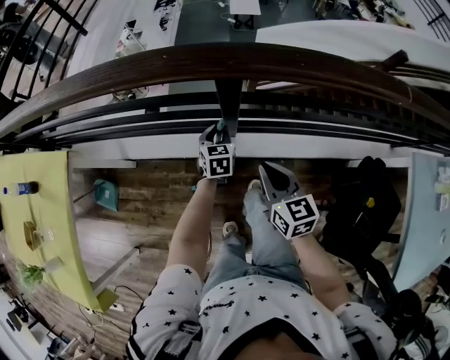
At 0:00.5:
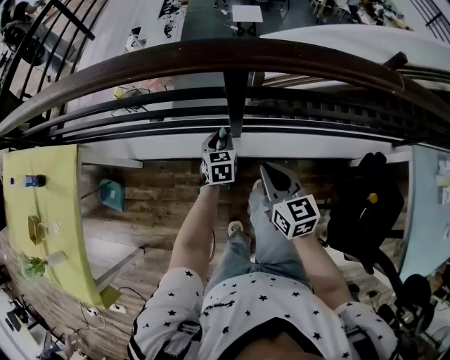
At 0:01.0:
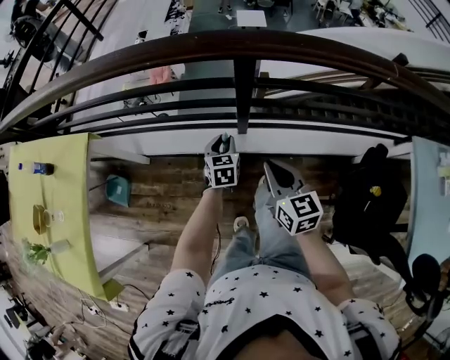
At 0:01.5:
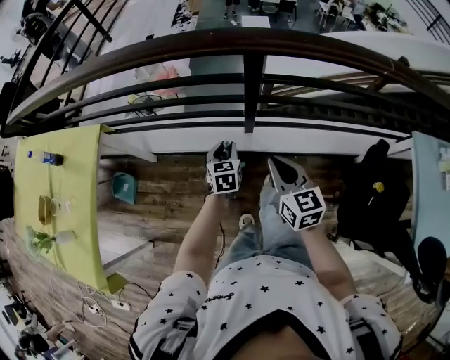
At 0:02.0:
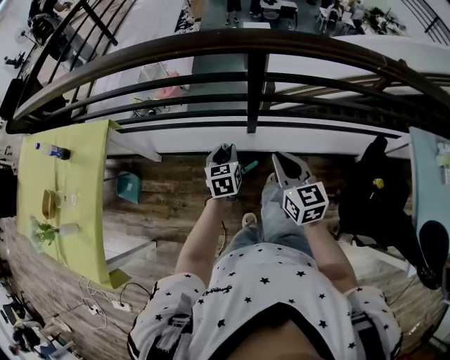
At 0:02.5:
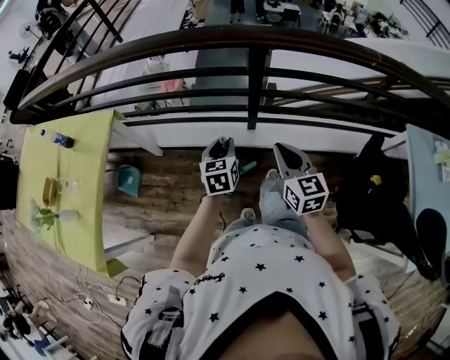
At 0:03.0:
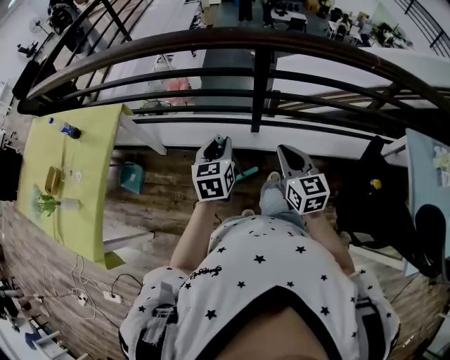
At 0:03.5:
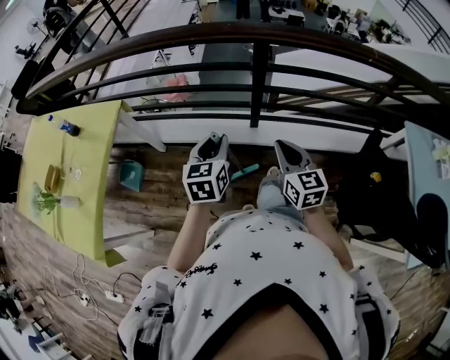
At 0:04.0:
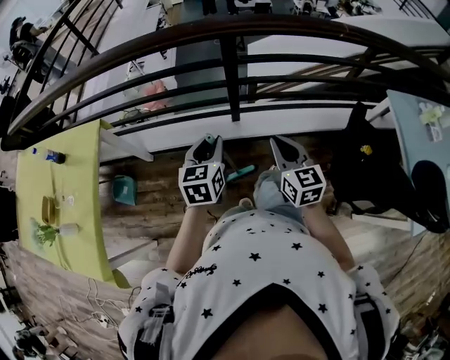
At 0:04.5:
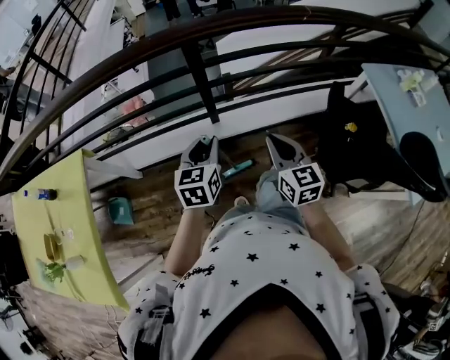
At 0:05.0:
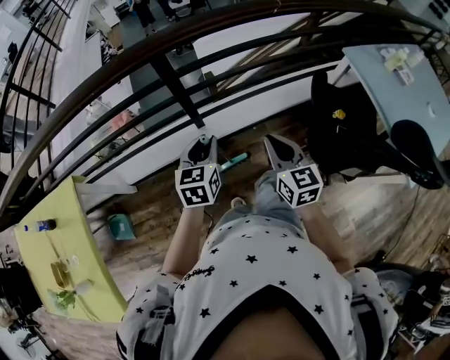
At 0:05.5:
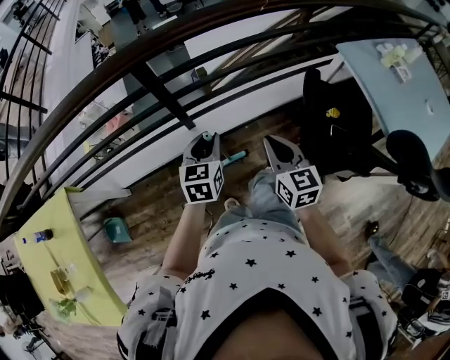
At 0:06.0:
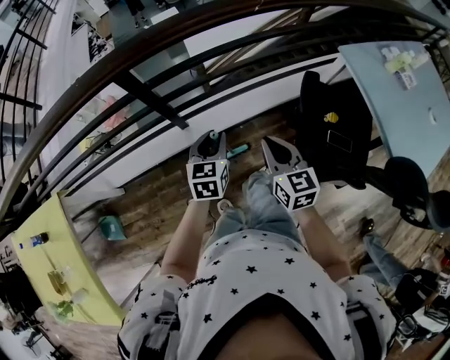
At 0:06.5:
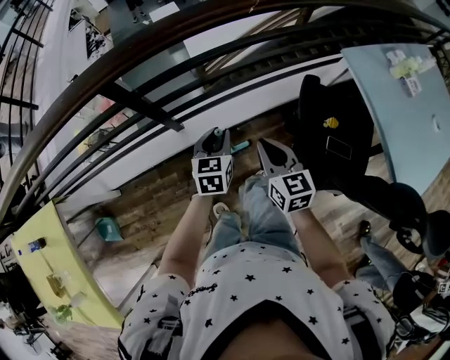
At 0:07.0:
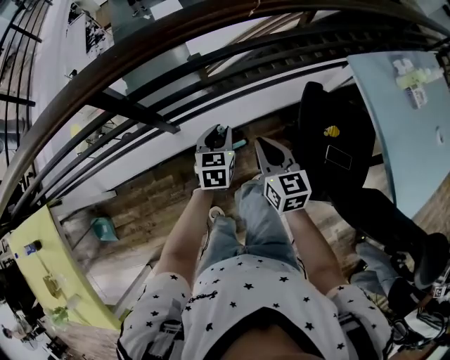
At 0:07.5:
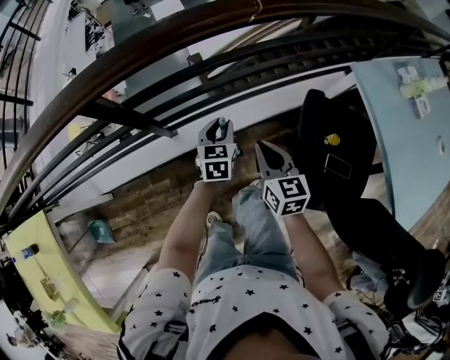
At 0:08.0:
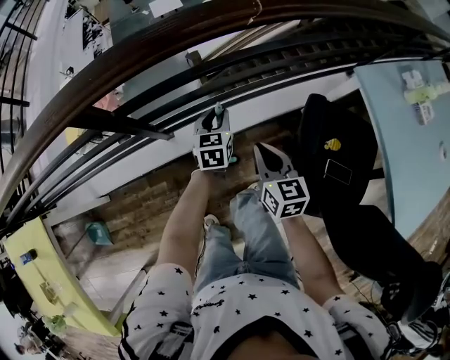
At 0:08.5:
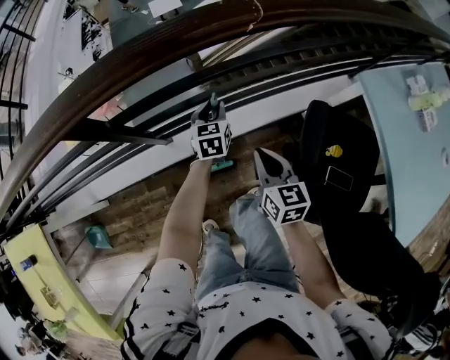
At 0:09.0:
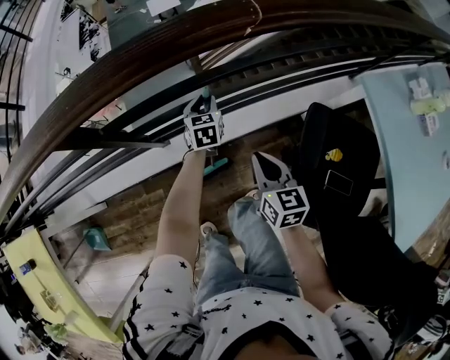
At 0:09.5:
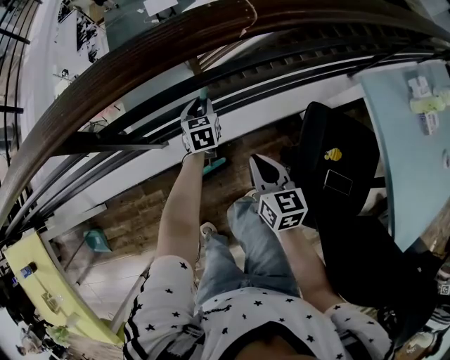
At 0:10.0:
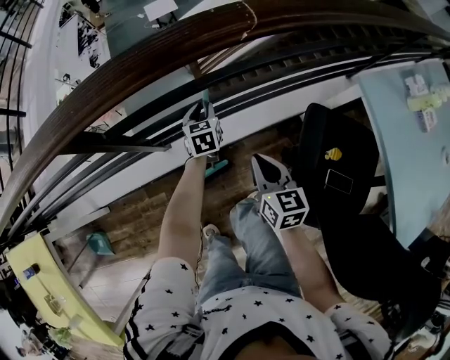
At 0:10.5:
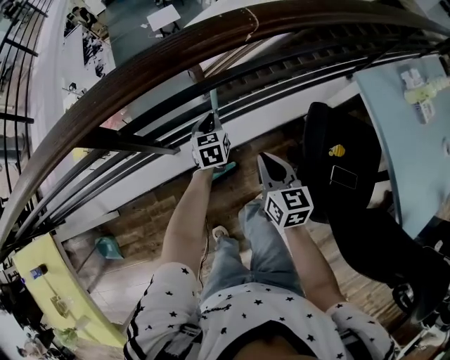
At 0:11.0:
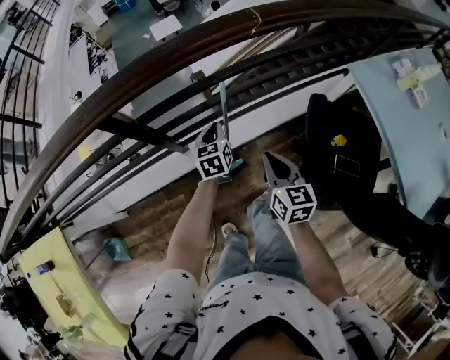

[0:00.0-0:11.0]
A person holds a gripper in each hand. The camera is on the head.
0:00.0 to 0:02.0: Both grippers move backward, upward and to the left, about 25 cm.
0:02.0 to 0:03.5: The right gripper goes approximately 5 cm backward. The left gripper is displaced upward and backward by approximately 20 cm.
0:03.5 to 0:05.5: The left gripper changes place by some 25 cm, and swivels some 30 degrees, while the right gripper ends up about 20 cm from where it was, and rotates roughly 30 degrees.
0:05.5 to 0:07.5: The right gripper goes some 25 cm forward, downward and to the right. Meanwhile the left gripper heads forward, to the right and downward, covering about 30 cm.
0:07.5 to 0:09.0: The left gripper is displaced forward and downward by about 20 cm, while the right gripper moves forward and downward, approximately 10 cm.
0:09.0 to 0:11.0: The left gripper moves backward and upward, some 15 cm, and closes its fingers; the right gripper heads backward and upward, covering approximately 10 cm.

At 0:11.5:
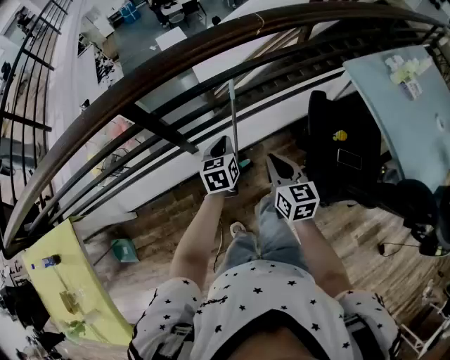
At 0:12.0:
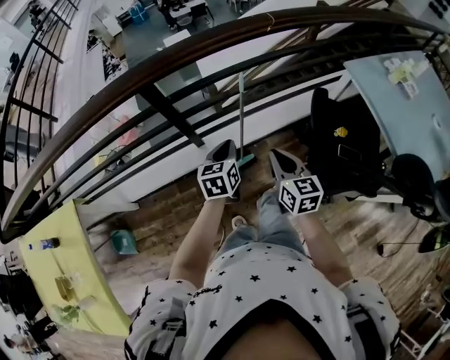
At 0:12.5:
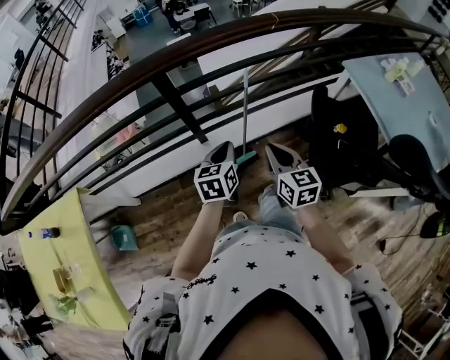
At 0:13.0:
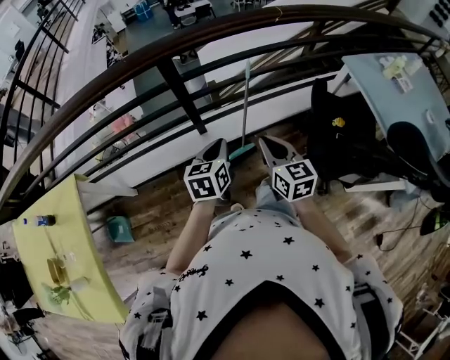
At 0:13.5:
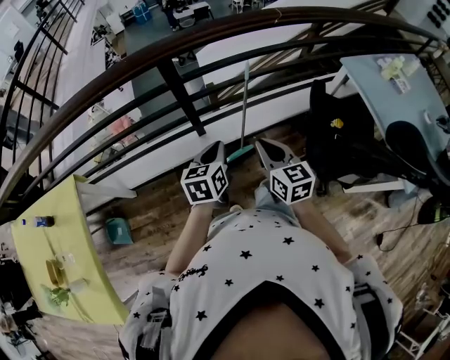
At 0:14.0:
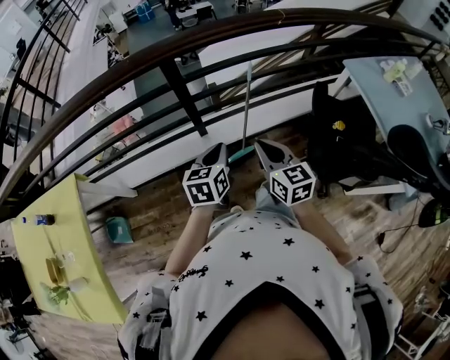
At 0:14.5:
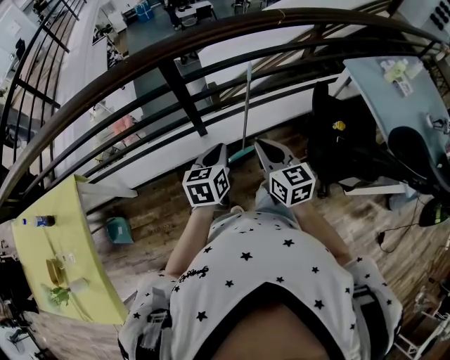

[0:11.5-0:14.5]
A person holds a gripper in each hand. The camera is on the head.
0:11.5 to 0:13.0: The two grippers go approximately 20 cm backward, to the left and upward.
0:13.0 to 0:14.5: The grippers make only small movements.

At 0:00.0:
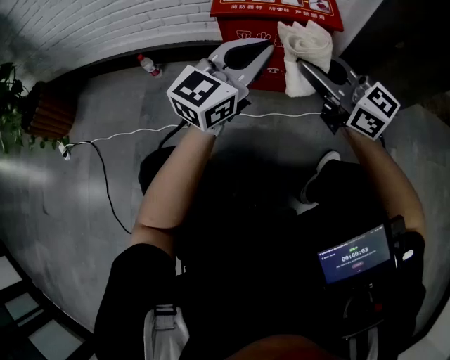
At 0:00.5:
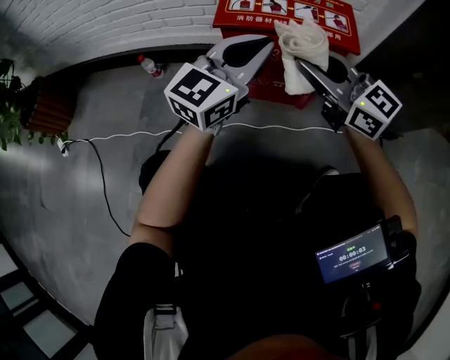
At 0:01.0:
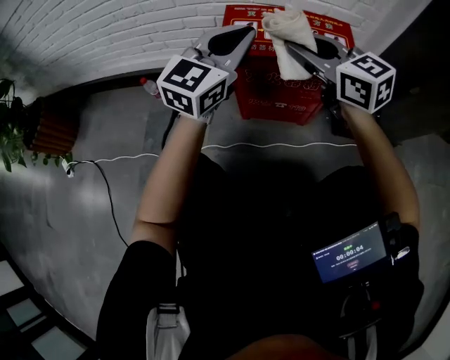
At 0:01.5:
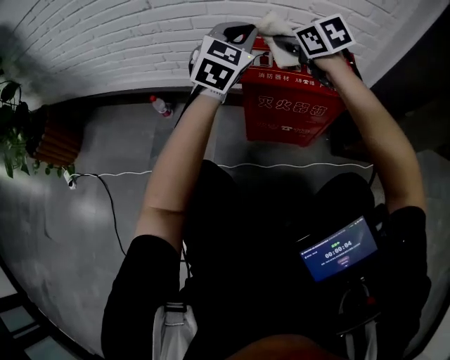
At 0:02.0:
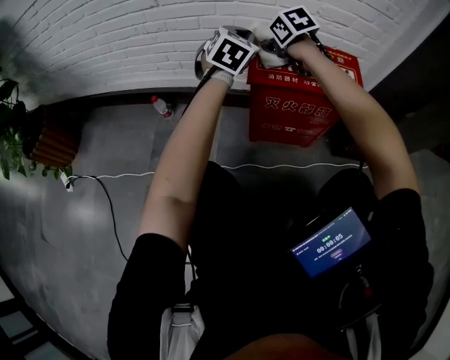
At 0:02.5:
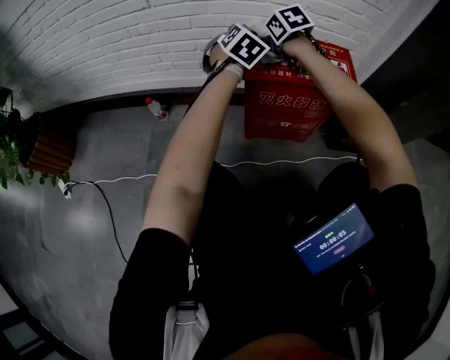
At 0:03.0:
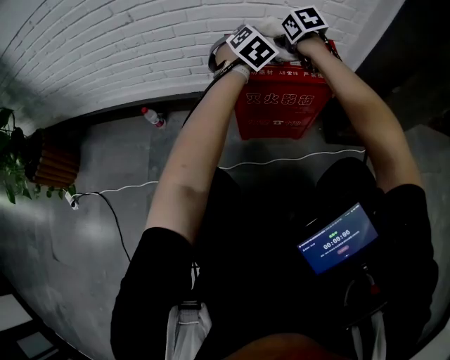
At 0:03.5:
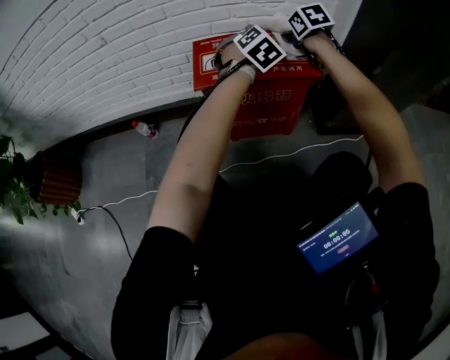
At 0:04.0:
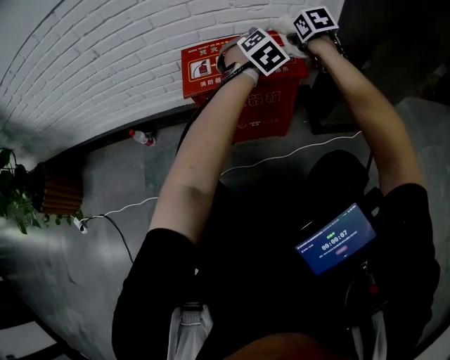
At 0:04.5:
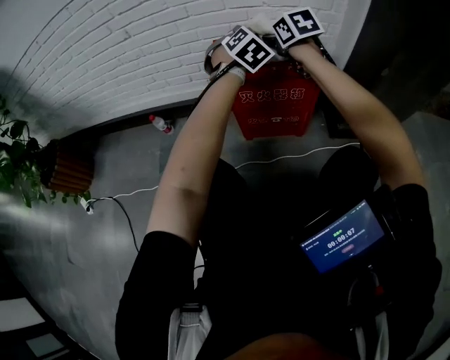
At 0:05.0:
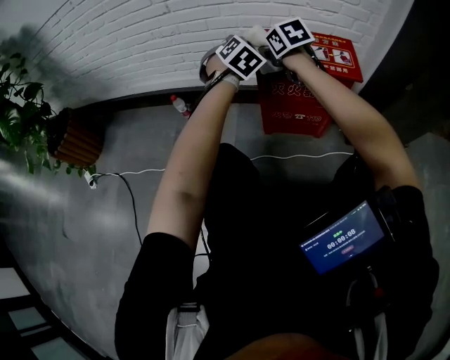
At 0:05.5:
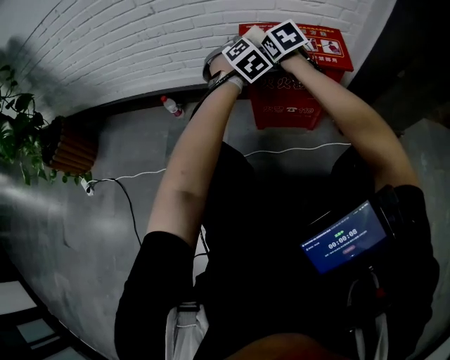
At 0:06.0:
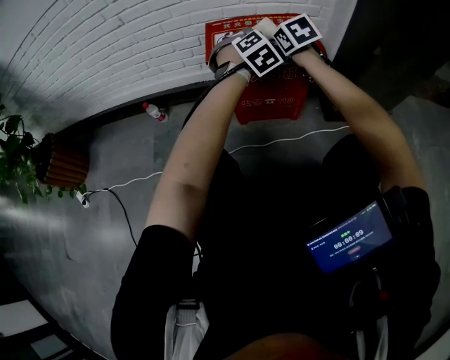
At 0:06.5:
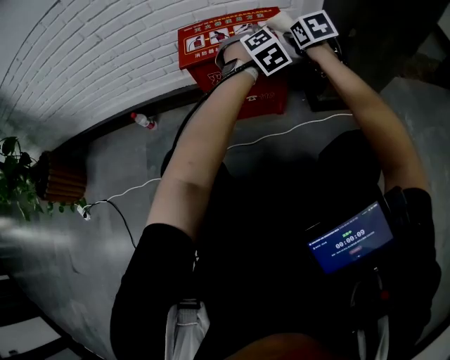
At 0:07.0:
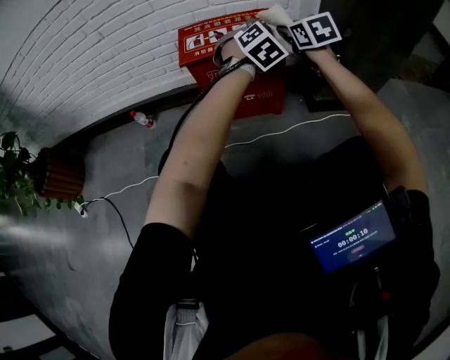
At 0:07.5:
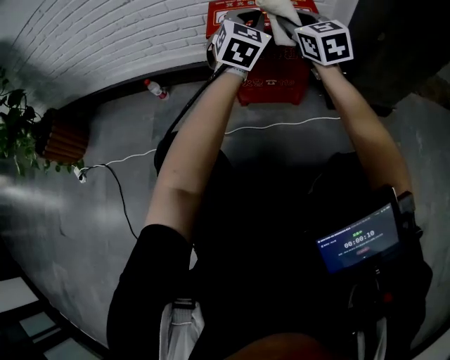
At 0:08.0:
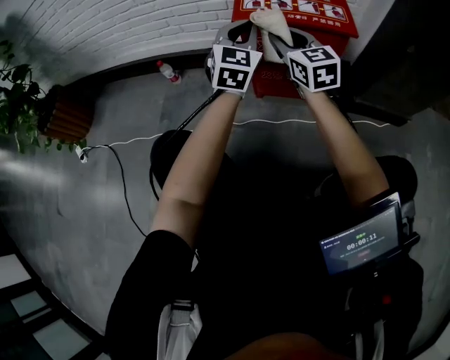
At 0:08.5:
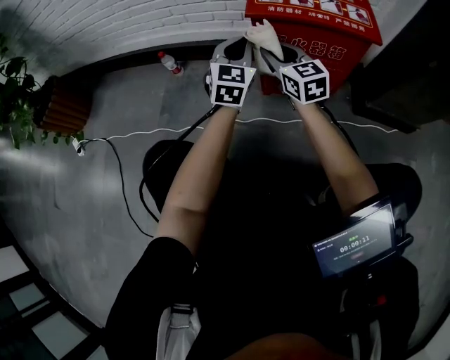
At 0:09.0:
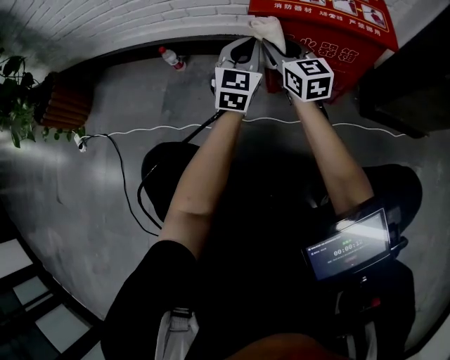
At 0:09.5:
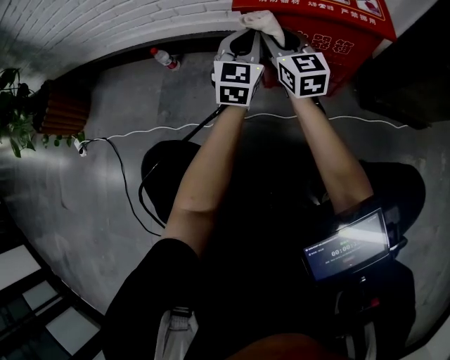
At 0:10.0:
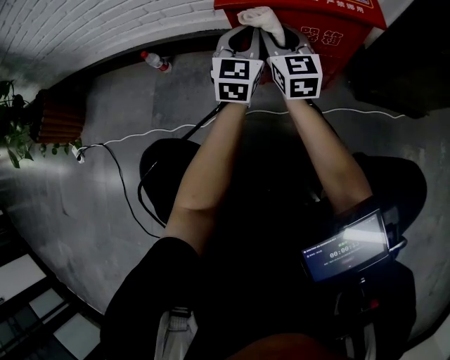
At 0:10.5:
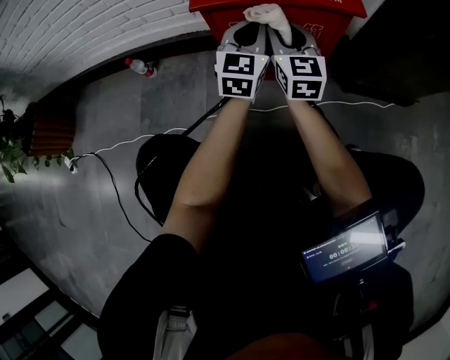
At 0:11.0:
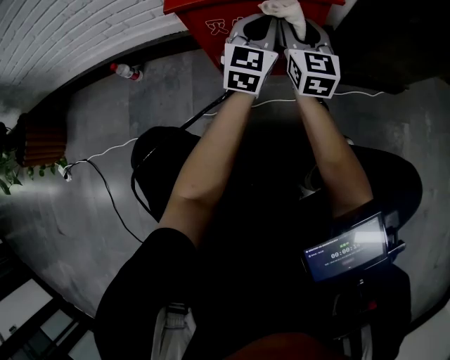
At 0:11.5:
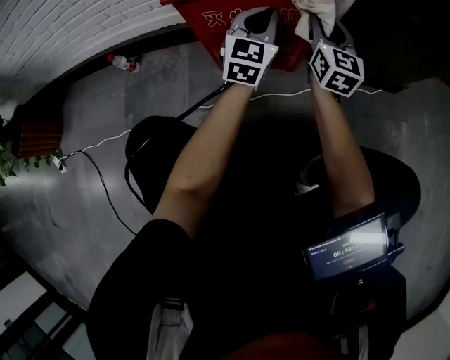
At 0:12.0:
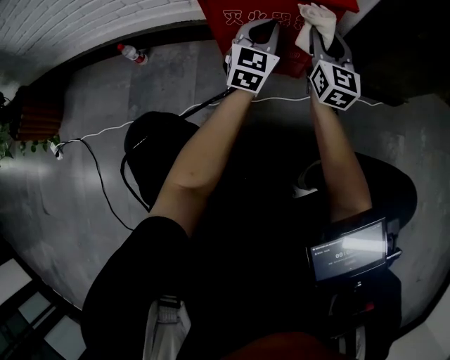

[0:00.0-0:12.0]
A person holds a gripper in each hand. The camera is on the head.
0:00.0 to 0:02.0: Both grippers travel together forward, approximately 35 cm. The right gripper angles its fingers downward, by roughly 50 degrees. The left gripper tips its fingers downward by approximately 30 degrees.
0:02.0 to 0:04.0: Both grippers travel together to the right, about 30 cm. The right gripper turns by some 30 degrees; the left gripper swivels some 30 degrees.
0:04.0 to 0:06.0: Both grippers move to the left and backward, some 15 cm.
0:06.0 to 0:08.0: The two grippers go roughly 15 cm to the left and backward. The left gripper tilts its fingers about 30 degrees upward. Meanwhile the right gripper angles its fingers upward, by some 30 degrees.
0:08.0 to 0:10.0: The right gripper heads downward and forward, covering approximately 15 cm; the left gripper is displaced downward by about 15 cm.
0:10.0 to 0:12.0: The left gripper is displaced to the right by roughly 10 cm; the right gripper heads to the right, covering roughly 20 cm.
